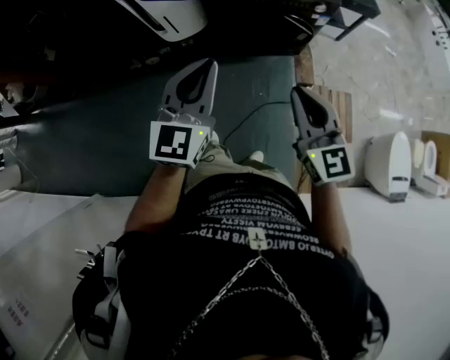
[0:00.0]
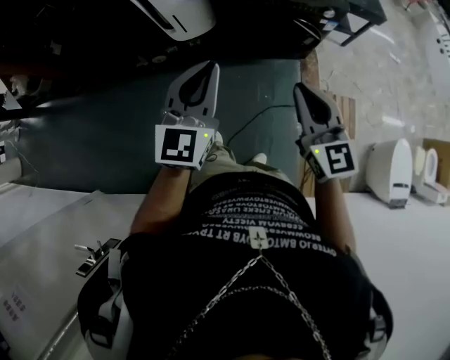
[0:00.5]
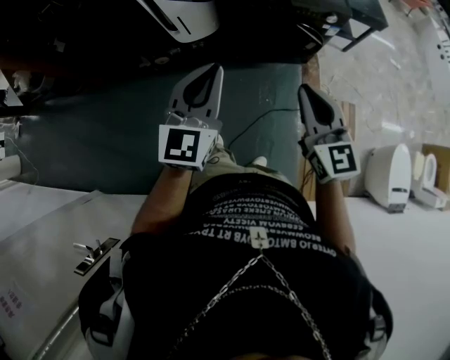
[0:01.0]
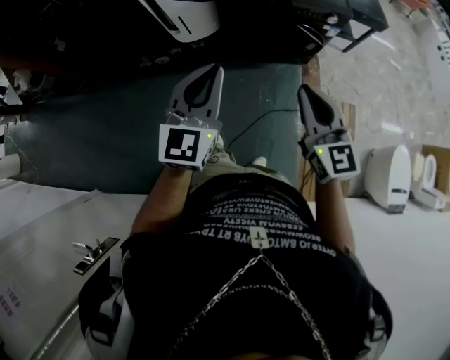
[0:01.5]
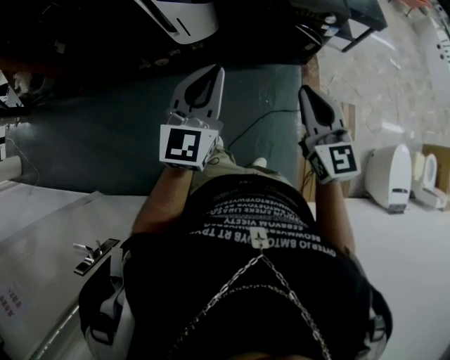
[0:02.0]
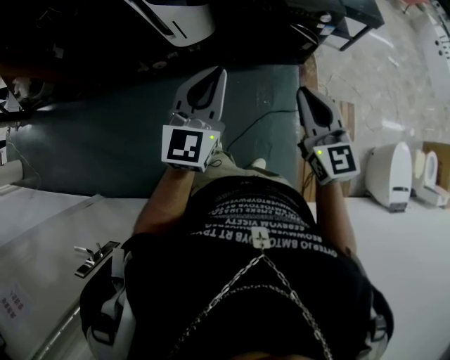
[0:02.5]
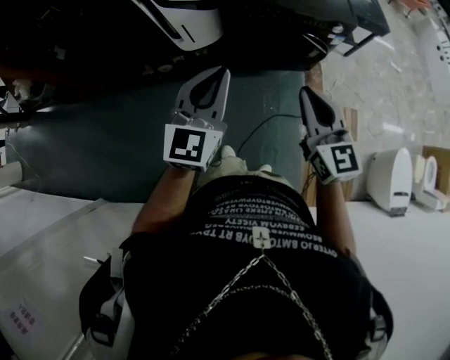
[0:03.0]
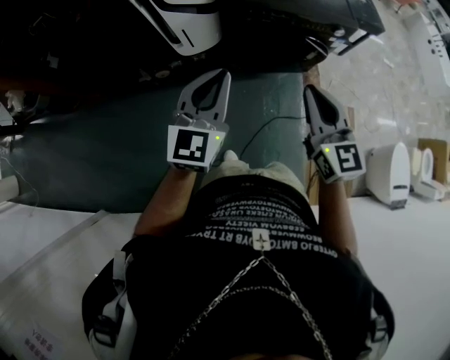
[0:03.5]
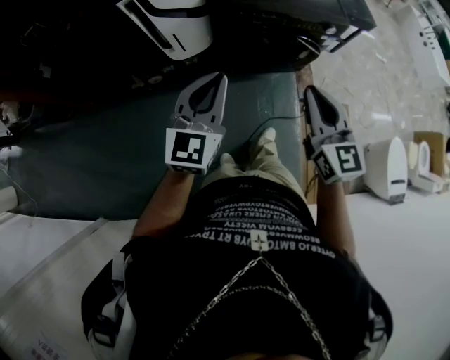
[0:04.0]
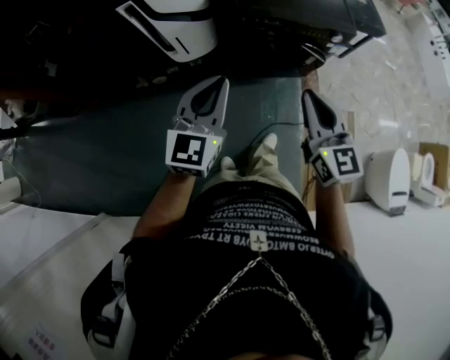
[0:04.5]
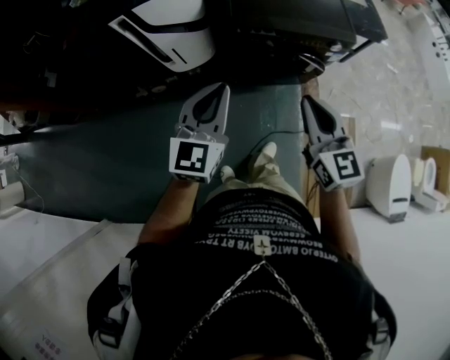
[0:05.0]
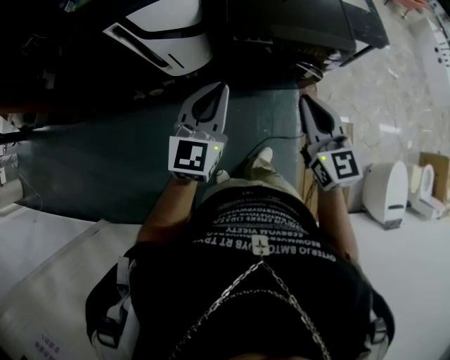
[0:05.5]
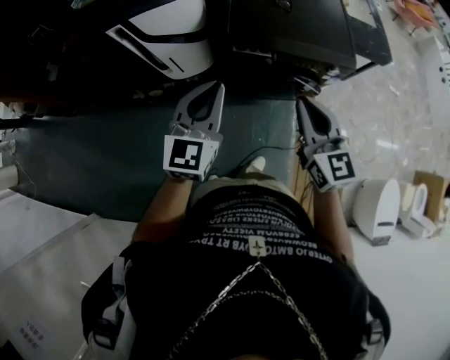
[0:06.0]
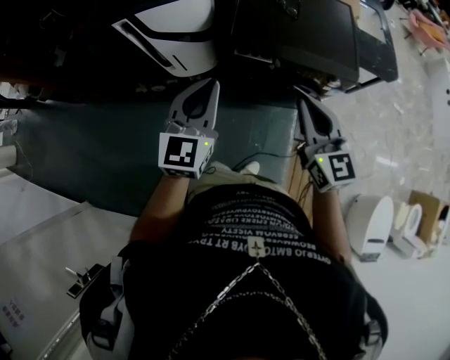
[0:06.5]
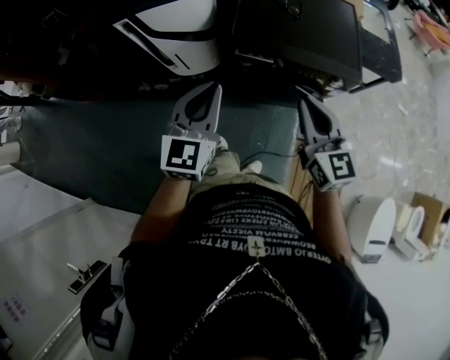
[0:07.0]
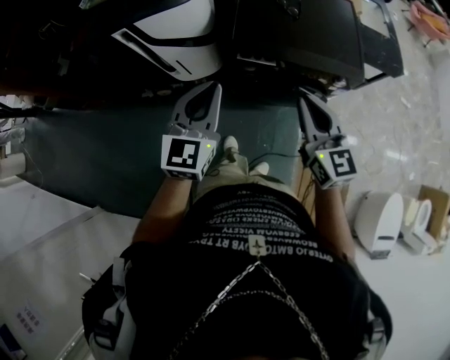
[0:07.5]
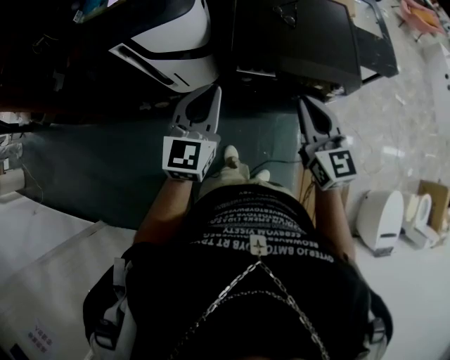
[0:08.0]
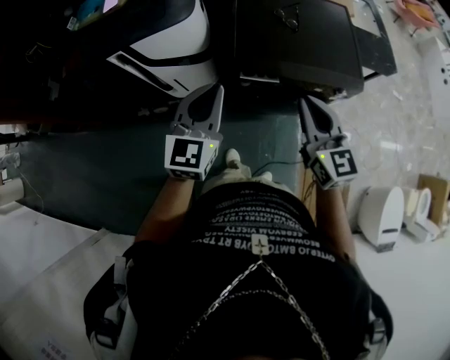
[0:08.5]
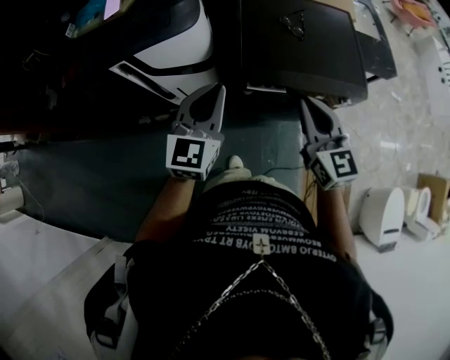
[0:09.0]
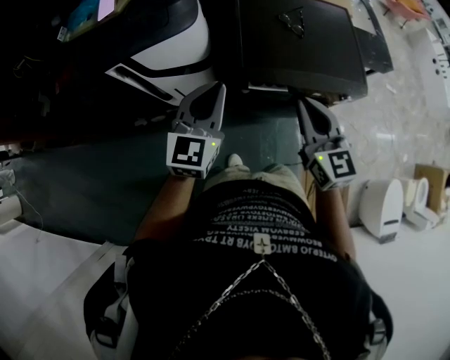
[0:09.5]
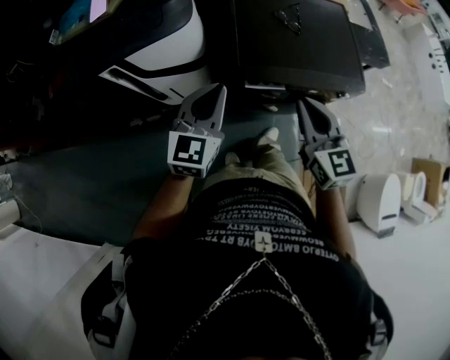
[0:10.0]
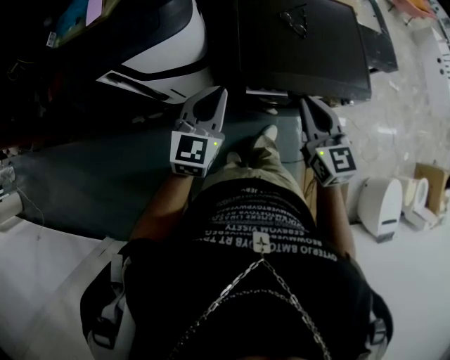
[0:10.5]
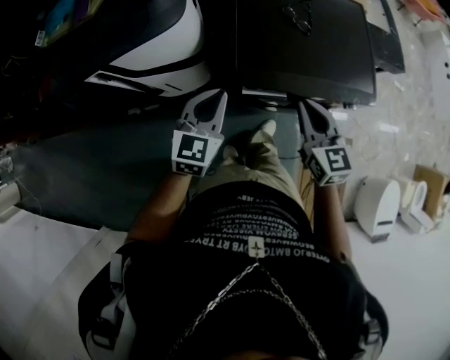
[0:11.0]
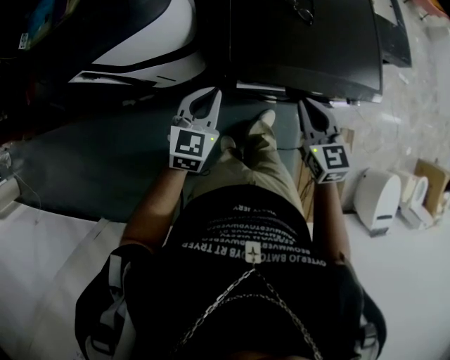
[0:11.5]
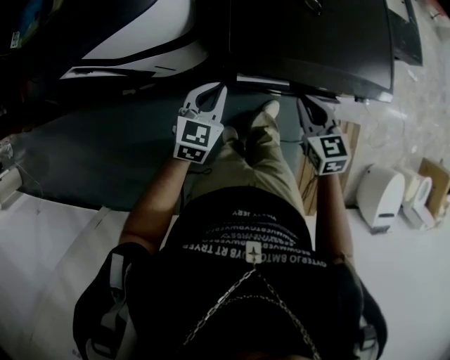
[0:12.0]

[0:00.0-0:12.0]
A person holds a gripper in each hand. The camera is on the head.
0:00.0 to 0:02.0: The grippers stay close to where they were, moving slightly.
0:02.0 to 0:04.0: The left gripper is displaced to the left and forward by some 15 cm. Meanwhile the right gripper heads forward and to the left, covering approximately 10 cm.
0:04.0 to 0:06.0: Both grippers move forward and to the right, some 20 cm.
0:06.0 to 0:08.0: The two grippers go roughly 10 cm forward.
0:08.0 to 0:10.0: The two grippers go some 15 cm forward and to the left.
0:10.0 to 0:12.0: Both grippers travel together downward, approximately 25 cm. The right gripper rotates roughly 20 degrees; the left gripper changes its angle by some 30 degrees.

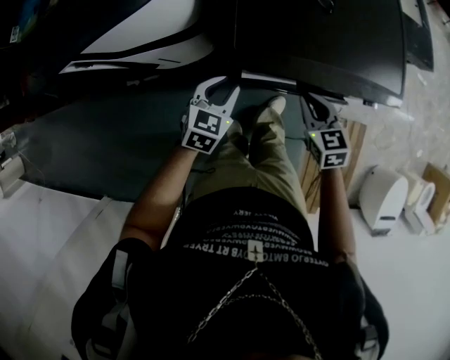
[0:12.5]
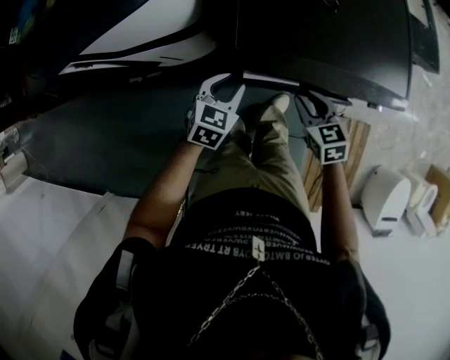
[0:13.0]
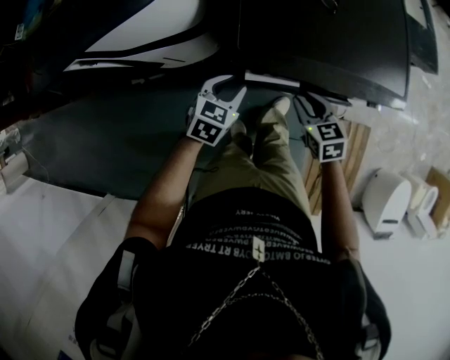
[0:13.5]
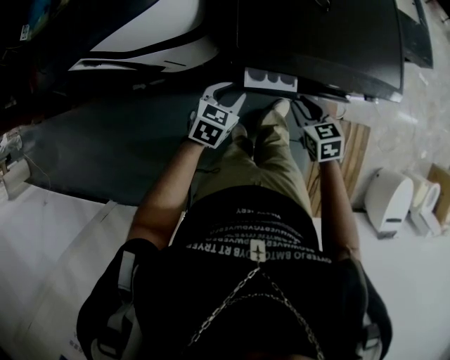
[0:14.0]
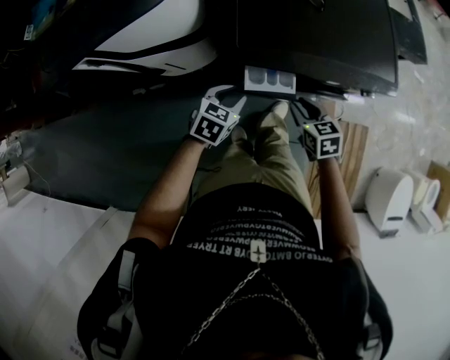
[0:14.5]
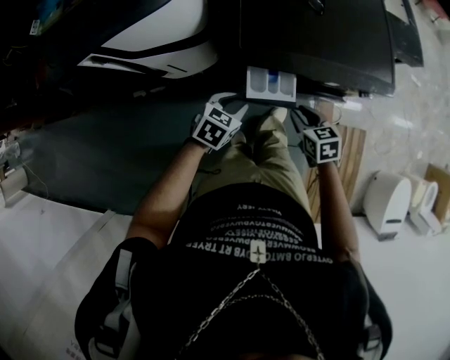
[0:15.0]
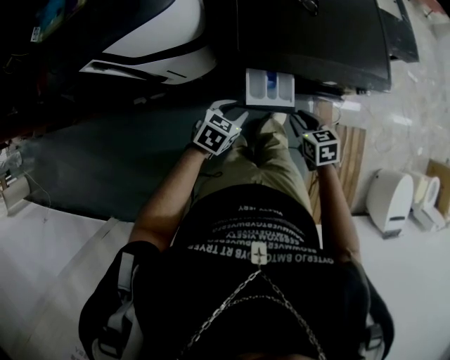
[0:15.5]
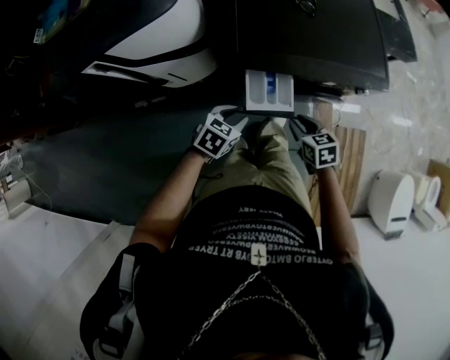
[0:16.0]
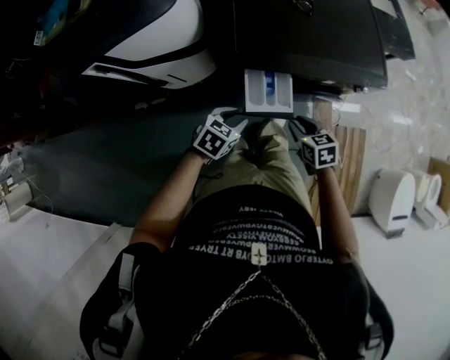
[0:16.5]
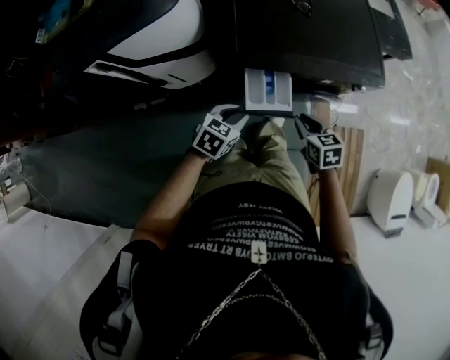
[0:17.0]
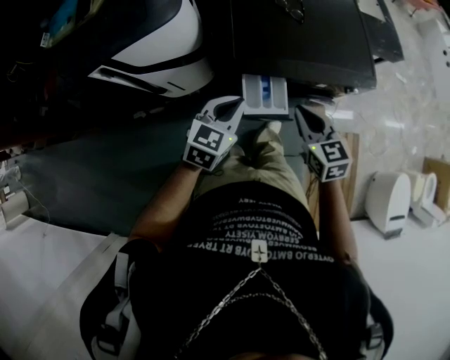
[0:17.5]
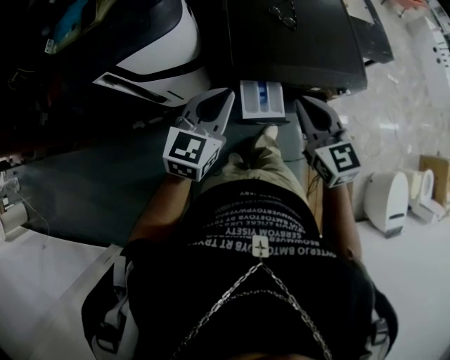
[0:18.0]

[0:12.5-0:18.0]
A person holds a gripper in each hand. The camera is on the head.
0:12.5 to 0:14.5: The grippers both shift backward by some 5 cm.
0:14.5 to 0:16.0: The two grippers go approximately 5 cm backward.
0:16.0 to 0:18.0: The grippers both shift upward by roughly 30 cm. The left gripper tips its fingers upward by approximately 30 degrees, and closes up, while the right gripper tilts its fingers approximately 30 degrees upward, and closes.

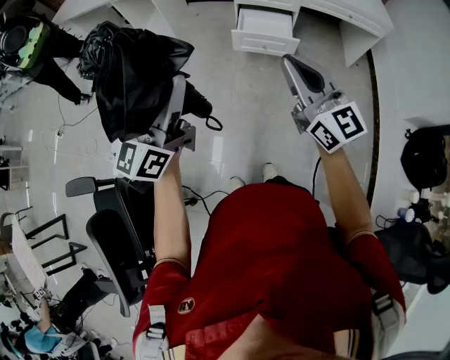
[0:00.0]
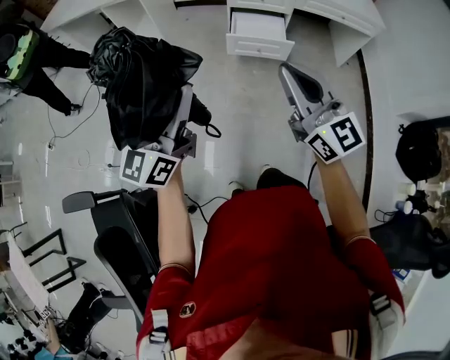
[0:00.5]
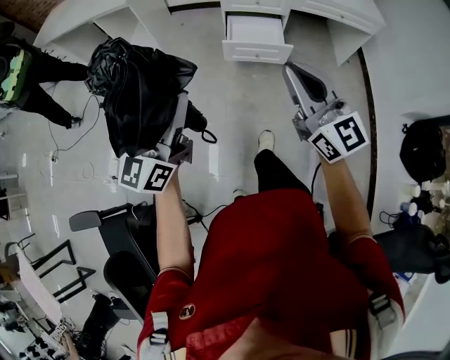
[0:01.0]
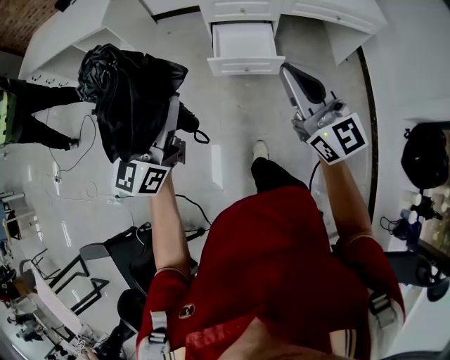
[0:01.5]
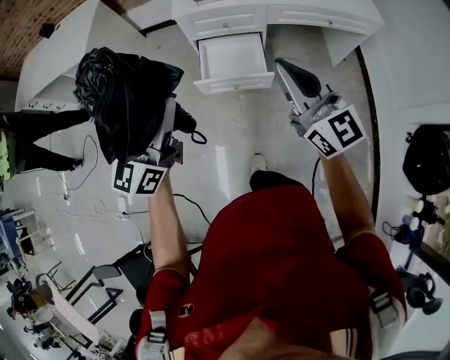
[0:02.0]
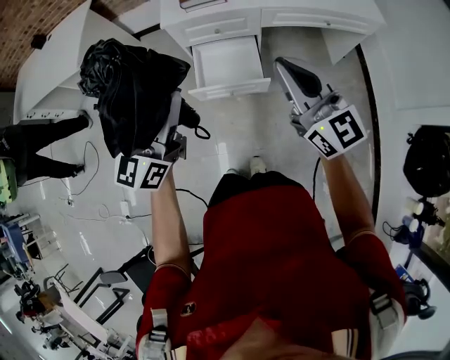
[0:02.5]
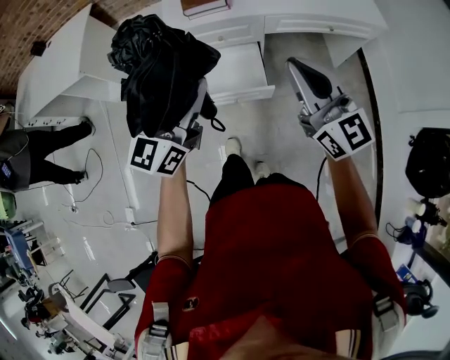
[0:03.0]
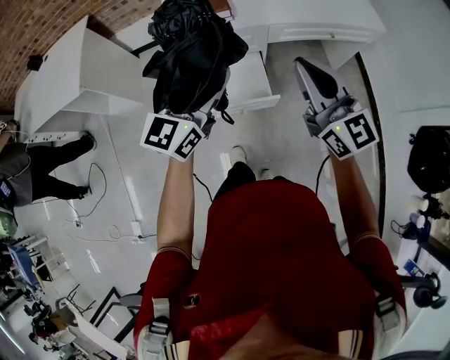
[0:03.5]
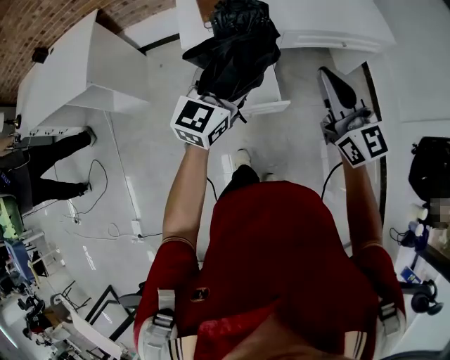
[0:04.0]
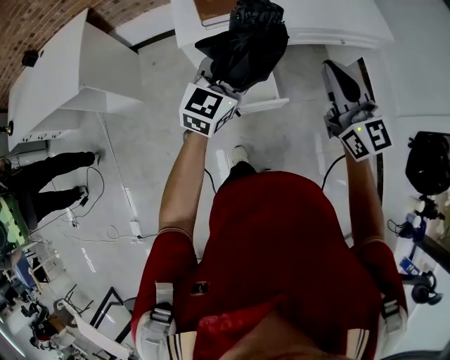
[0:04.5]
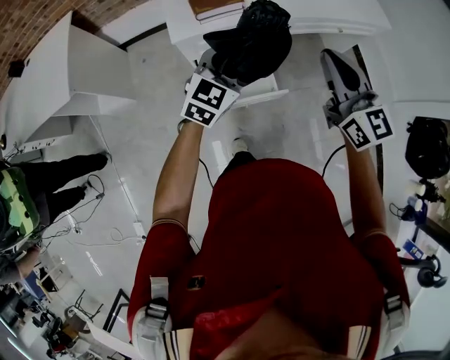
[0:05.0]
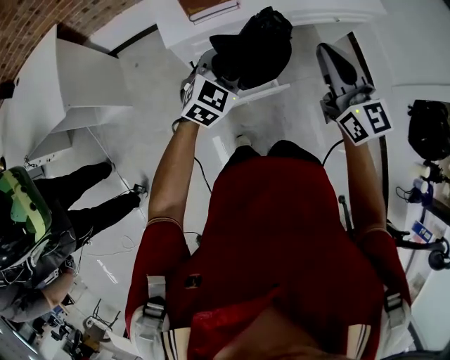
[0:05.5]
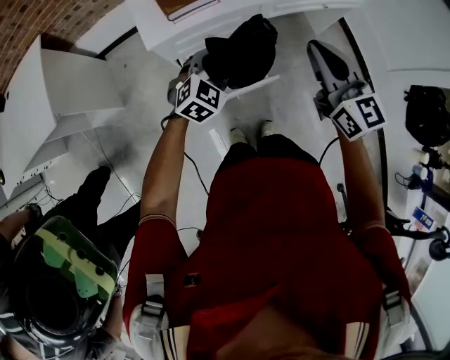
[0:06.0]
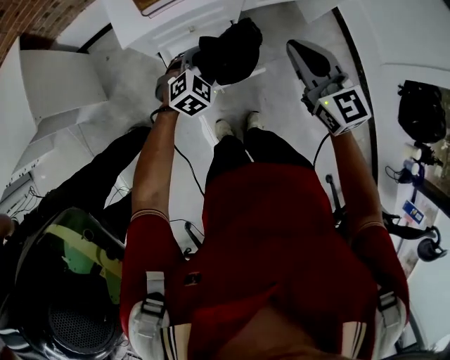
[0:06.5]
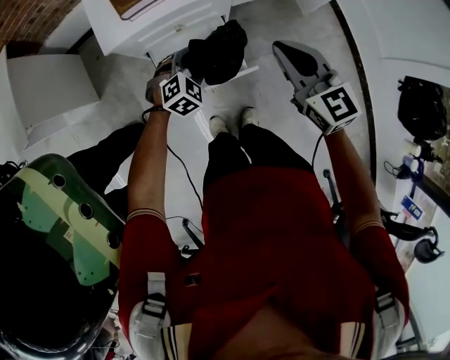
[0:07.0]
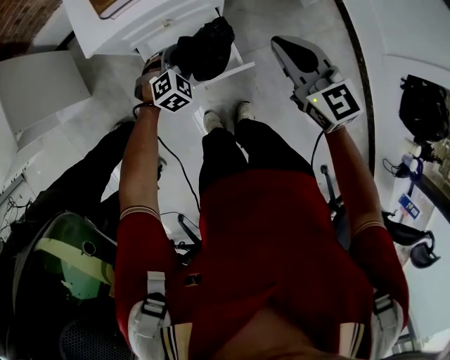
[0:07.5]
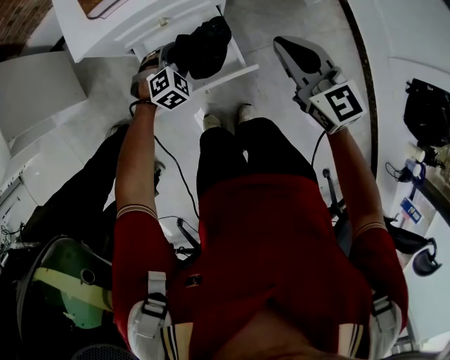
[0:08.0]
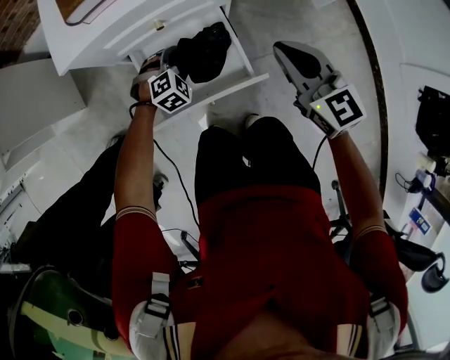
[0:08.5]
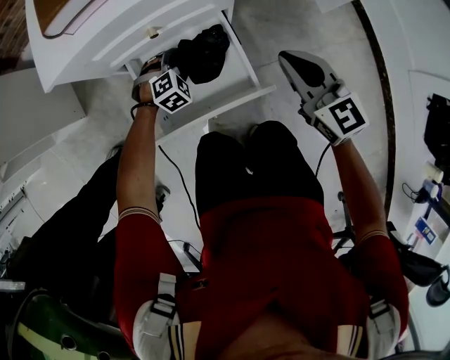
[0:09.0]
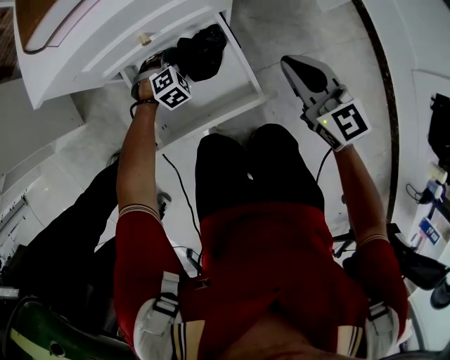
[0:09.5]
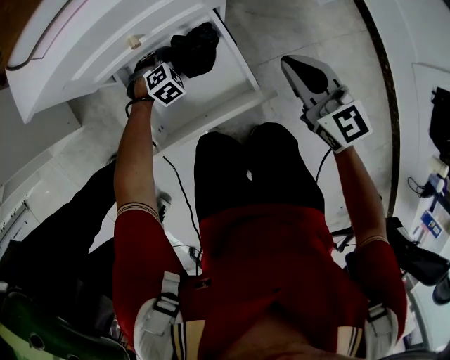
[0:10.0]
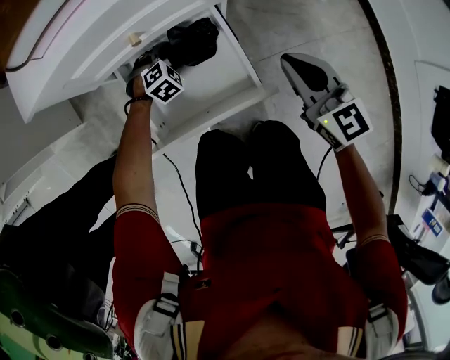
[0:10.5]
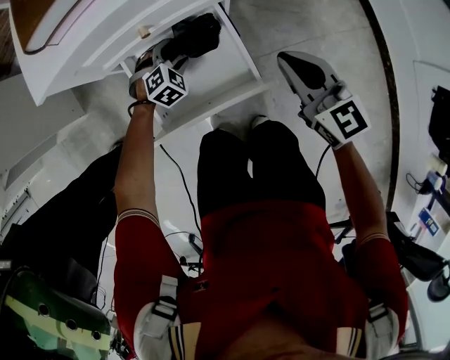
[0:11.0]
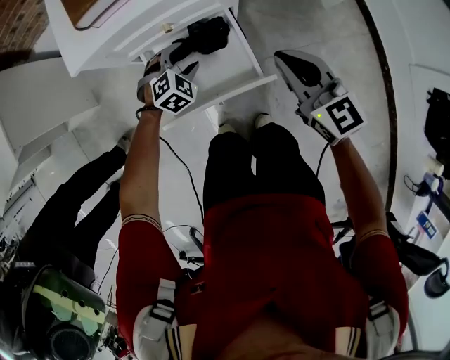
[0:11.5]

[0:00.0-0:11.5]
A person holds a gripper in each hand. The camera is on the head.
0:00.0 to 0:02.0: The grippers both shift forward and to the right by about 40 cm.
0:02.0 to 0:04.0: The left gripper shifts roughly 25 cm forward and to the right, and swivels approximately 30 degrees; the right gripper moves forward, approximately 15 cm.
0:04.0 to 0:06.0: The right gripper shifts about 10 cm forward and downward. Meanwhile the left gripper travels downward by roughly 20 cm, and angles its fingers downward, by roughly 30 degrees.
0:06.0 to 0:07.5: The right gripper goes some 20 cm downward and forward. Meanwhile the left gripper moves downward, approximately 20 cm, and rotates approximately 20 degrees.
0:07.5 to 0:09.5: Both grippers travel together downward, approximately 25 cm.
0:09.5 to 0:11.5: The two grippers go about 15 cm upward.
